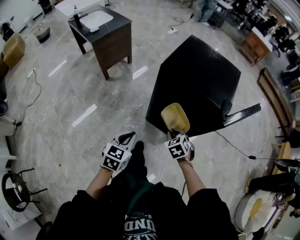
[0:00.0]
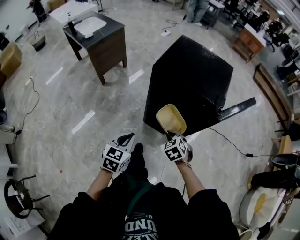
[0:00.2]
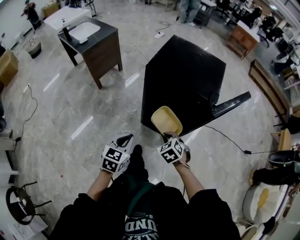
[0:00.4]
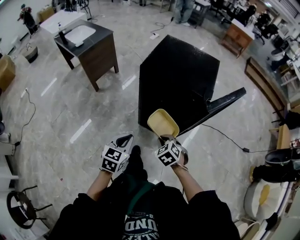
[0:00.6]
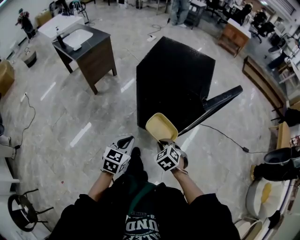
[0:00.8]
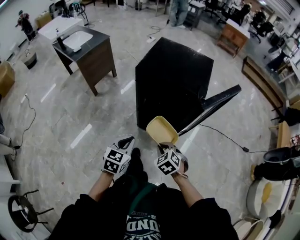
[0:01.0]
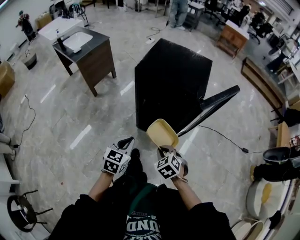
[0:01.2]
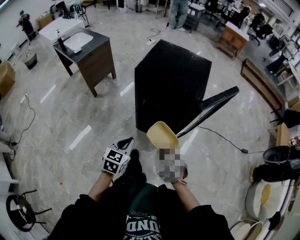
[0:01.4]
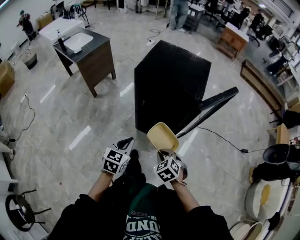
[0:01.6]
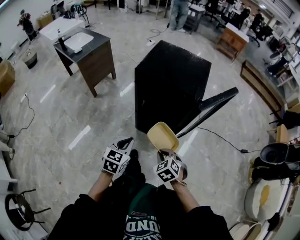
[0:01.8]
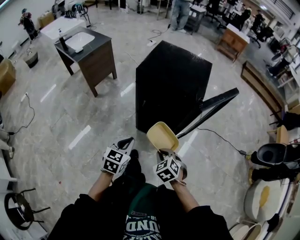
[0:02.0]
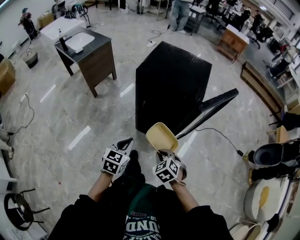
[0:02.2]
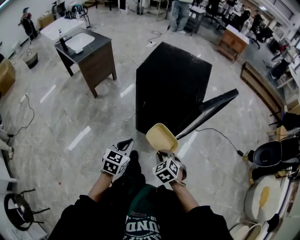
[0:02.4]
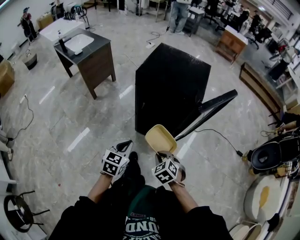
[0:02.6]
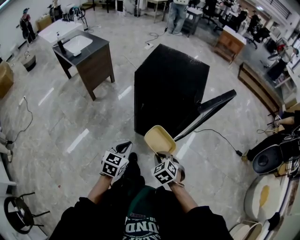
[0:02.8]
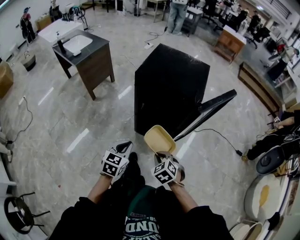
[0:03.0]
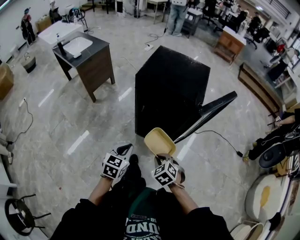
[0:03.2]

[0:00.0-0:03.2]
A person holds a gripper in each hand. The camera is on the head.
0:00.0 to 0:01.6: The right gripper travels backward by roughly 15 cm, while the left gripper travels to the right by approximately 10 cm.
0:01.6 to 0:03.2: The grippers make only small movements.

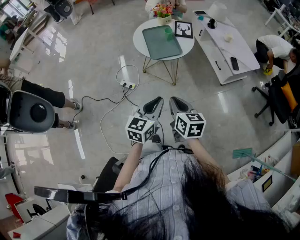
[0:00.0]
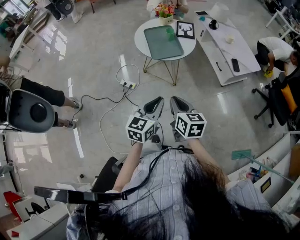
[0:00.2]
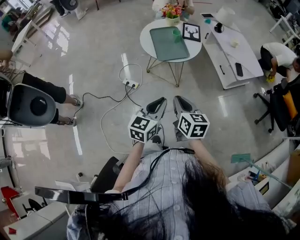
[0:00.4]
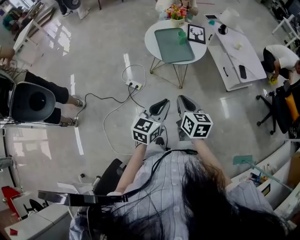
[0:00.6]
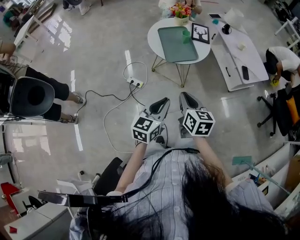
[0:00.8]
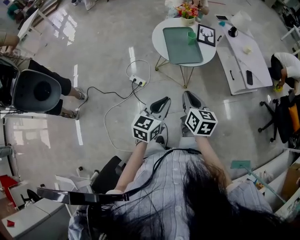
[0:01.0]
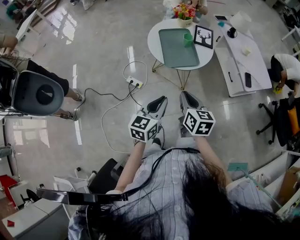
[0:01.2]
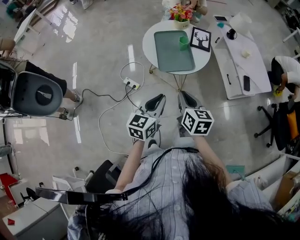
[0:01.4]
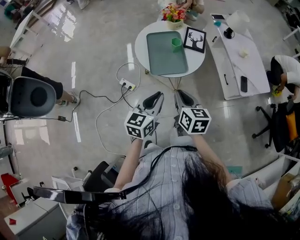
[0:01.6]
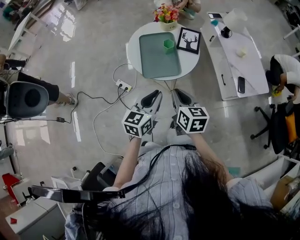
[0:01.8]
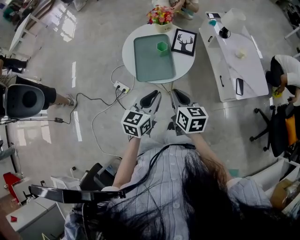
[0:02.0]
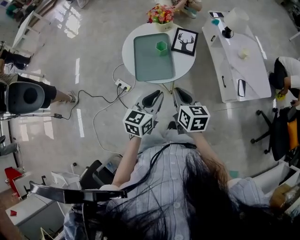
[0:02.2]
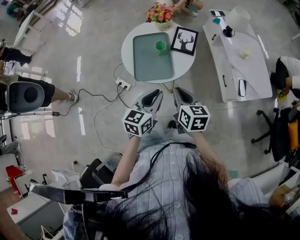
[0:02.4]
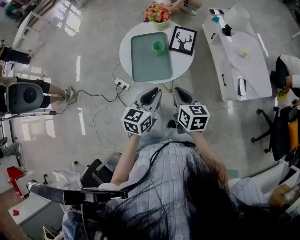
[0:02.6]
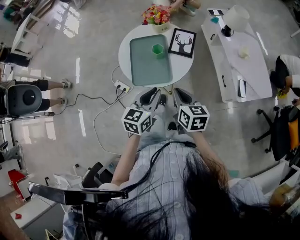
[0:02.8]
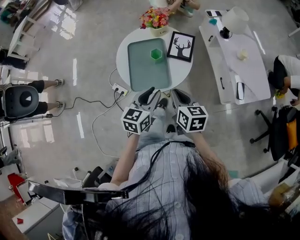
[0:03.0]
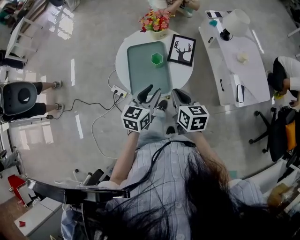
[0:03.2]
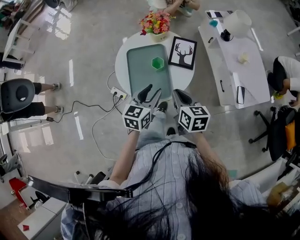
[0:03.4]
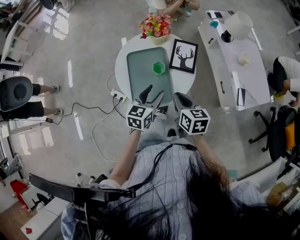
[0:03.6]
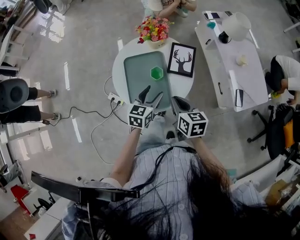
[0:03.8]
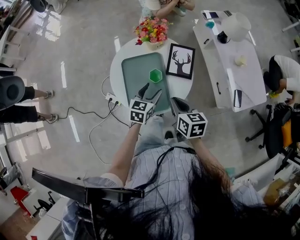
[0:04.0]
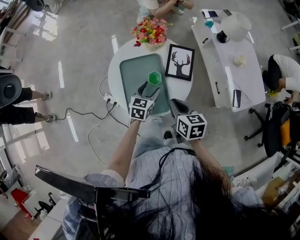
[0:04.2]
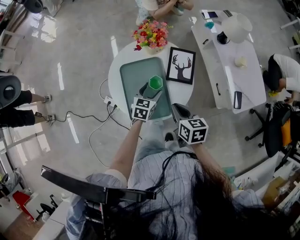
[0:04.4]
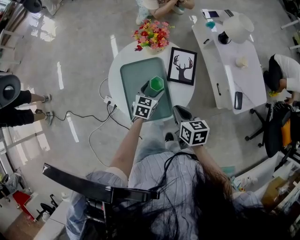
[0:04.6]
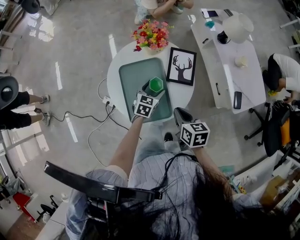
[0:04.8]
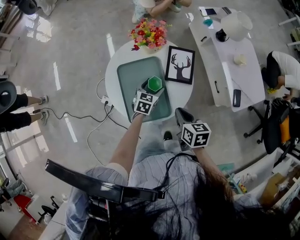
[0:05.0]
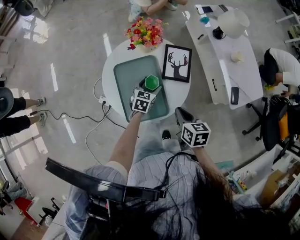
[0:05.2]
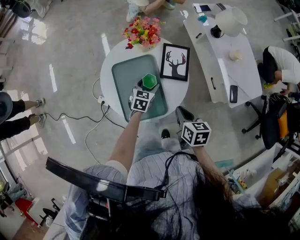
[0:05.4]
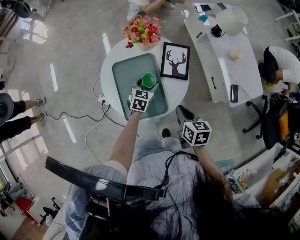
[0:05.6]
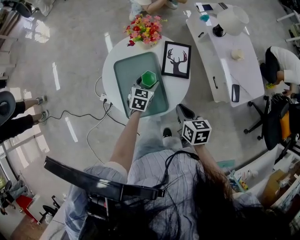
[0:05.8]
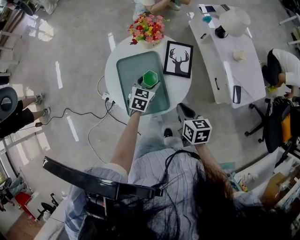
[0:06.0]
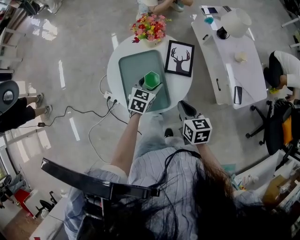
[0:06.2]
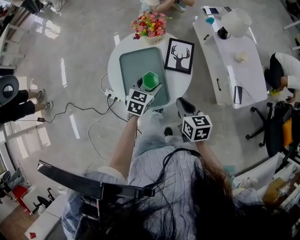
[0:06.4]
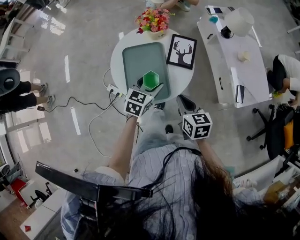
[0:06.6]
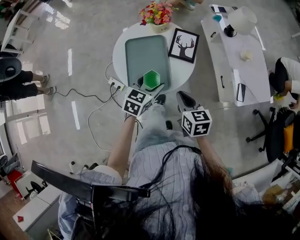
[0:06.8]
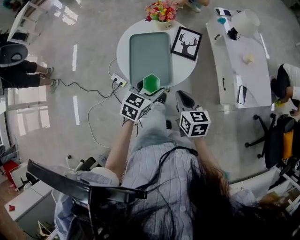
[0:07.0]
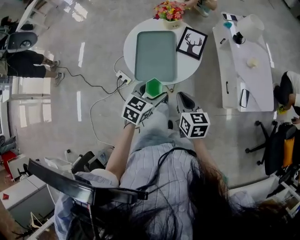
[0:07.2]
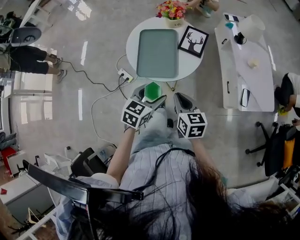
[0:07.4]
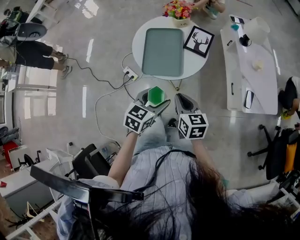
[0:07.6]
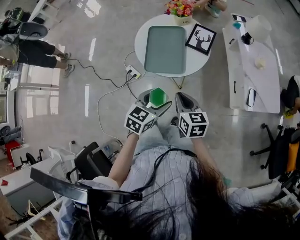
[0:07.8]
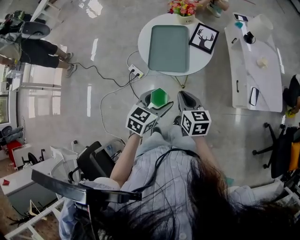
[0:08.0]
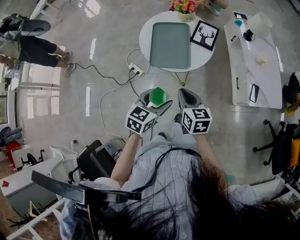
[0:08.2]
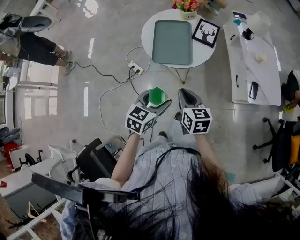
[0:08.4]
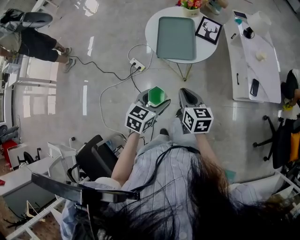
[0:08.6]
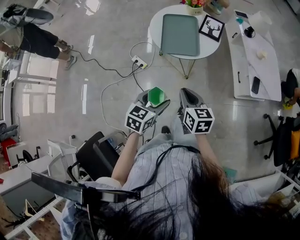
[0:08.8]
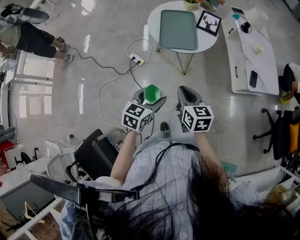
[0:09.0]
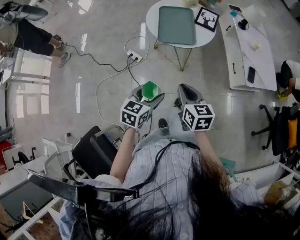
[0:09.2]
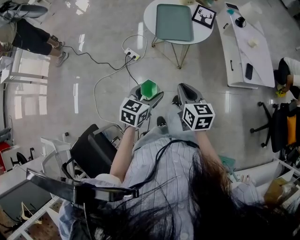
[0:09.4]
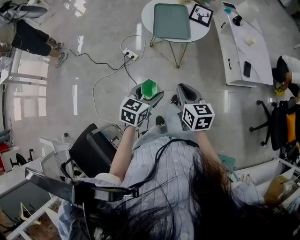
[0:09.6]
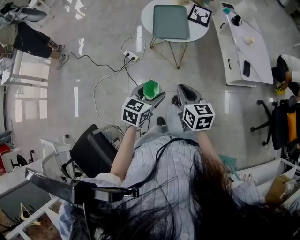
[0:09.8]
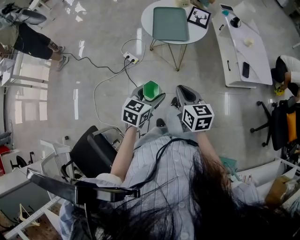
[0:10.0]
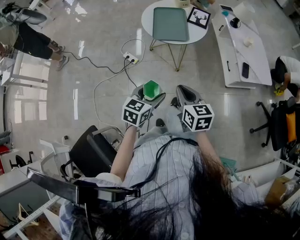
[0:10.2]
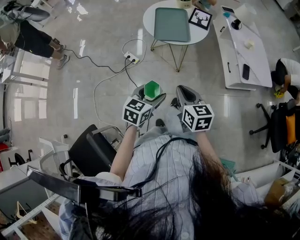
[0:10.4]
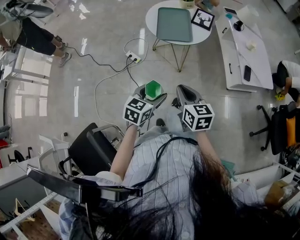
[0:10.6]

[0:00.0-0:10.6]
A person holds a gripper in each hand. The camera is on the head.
0:00.0 to 0:01.6: The grippers both shift forward by approximately 20 cm.
0:01.6 to 0:03.0: Both grippers move forward and to the right, approximately 15 cm.
0:03.0 to 0:04.6: The right gripper travels forward and downward by about 10 cm. The left gripper goes some 25 cm forward and downward, and opens.
0:04.6 to 0:06.0: The grippers make only small movements.
0:06.0 to 0:07.6: The right gripper moves backward, some 15 cm, and turns by some 20 degrees. The left gripper shifts approximately 35 cm backward and upward.
0:07.6 to 0:09.0: The grippers both shift backward and to the left by some 20 cm.
0:09.0 to 0:10.6: Both grippers move backward, approximately 5 cm.

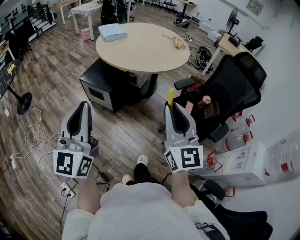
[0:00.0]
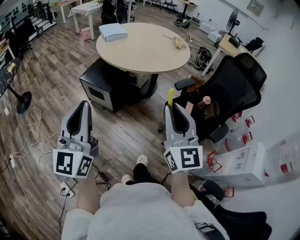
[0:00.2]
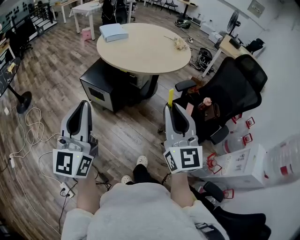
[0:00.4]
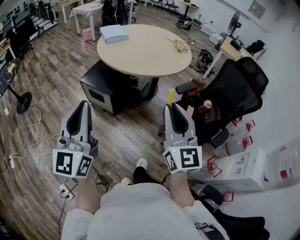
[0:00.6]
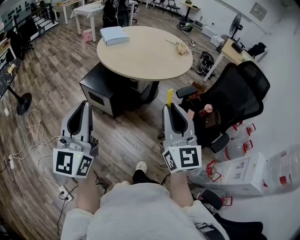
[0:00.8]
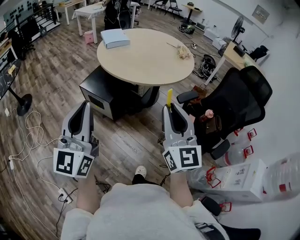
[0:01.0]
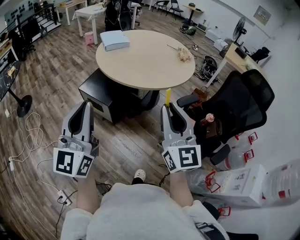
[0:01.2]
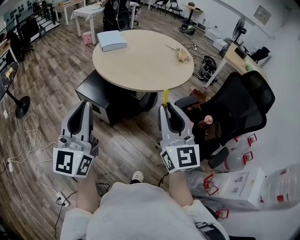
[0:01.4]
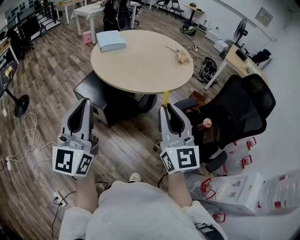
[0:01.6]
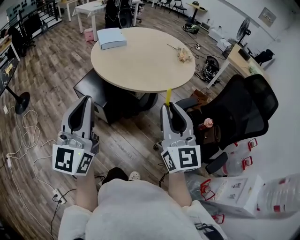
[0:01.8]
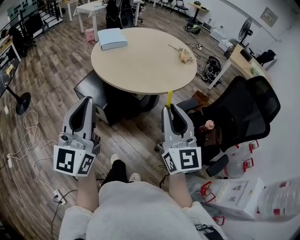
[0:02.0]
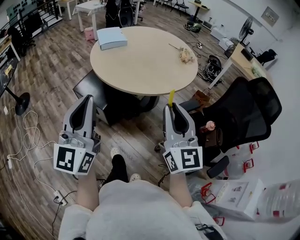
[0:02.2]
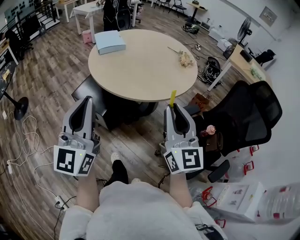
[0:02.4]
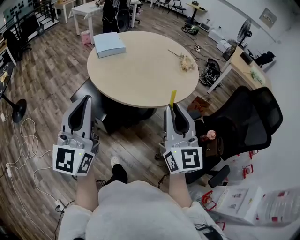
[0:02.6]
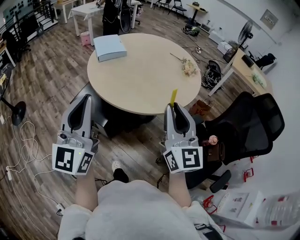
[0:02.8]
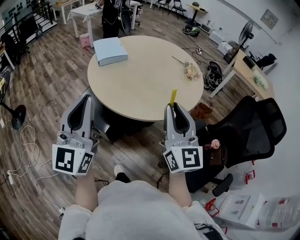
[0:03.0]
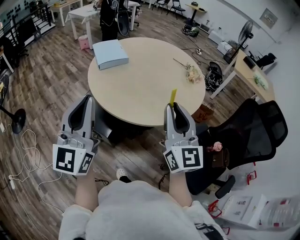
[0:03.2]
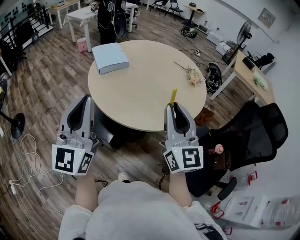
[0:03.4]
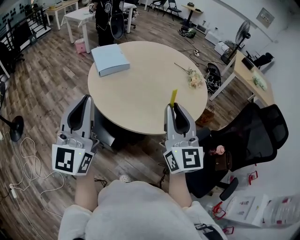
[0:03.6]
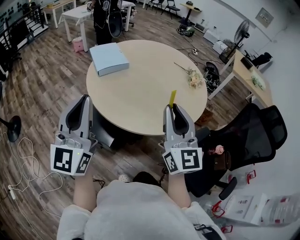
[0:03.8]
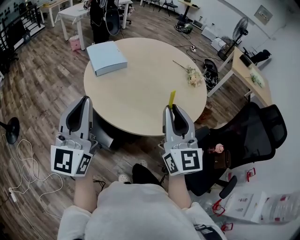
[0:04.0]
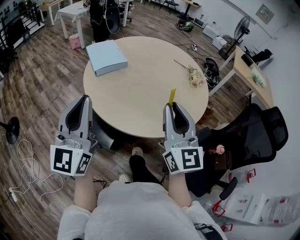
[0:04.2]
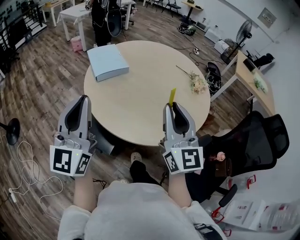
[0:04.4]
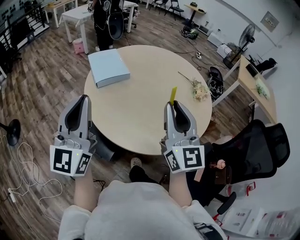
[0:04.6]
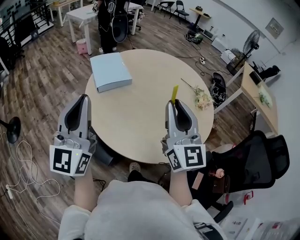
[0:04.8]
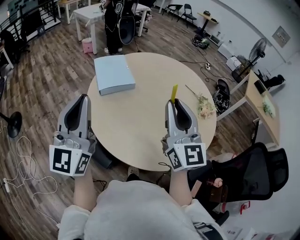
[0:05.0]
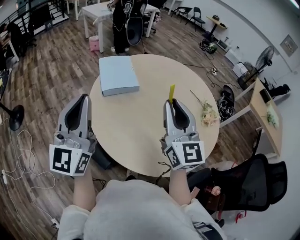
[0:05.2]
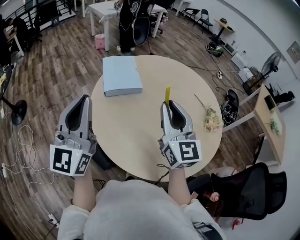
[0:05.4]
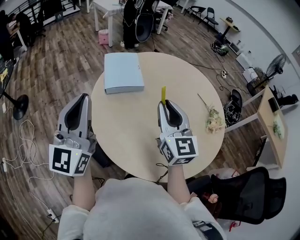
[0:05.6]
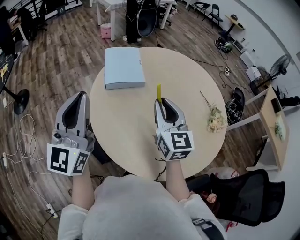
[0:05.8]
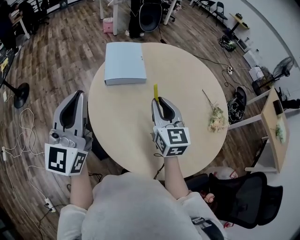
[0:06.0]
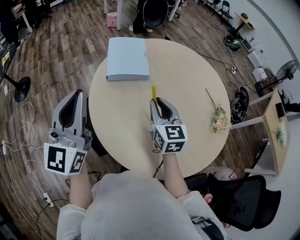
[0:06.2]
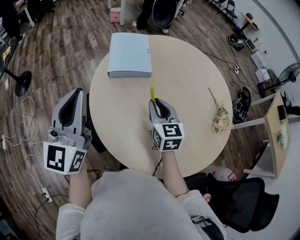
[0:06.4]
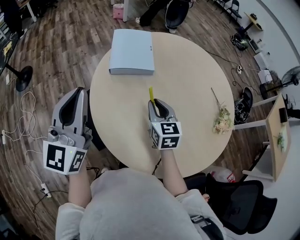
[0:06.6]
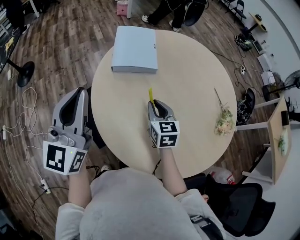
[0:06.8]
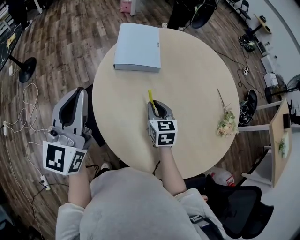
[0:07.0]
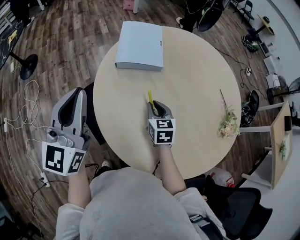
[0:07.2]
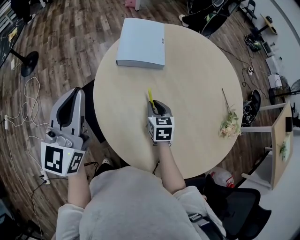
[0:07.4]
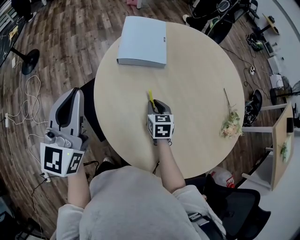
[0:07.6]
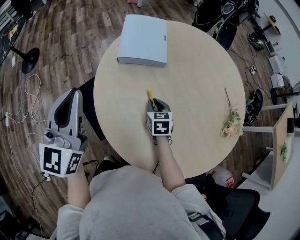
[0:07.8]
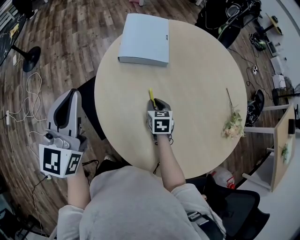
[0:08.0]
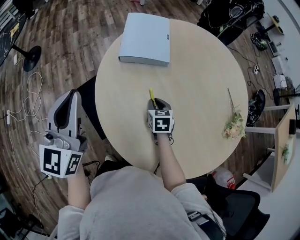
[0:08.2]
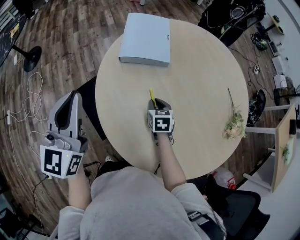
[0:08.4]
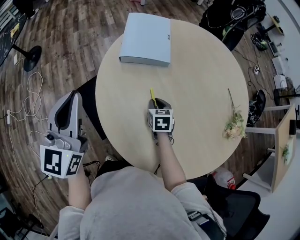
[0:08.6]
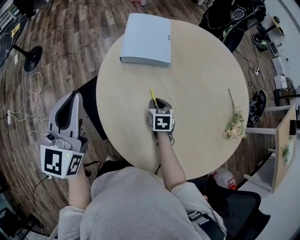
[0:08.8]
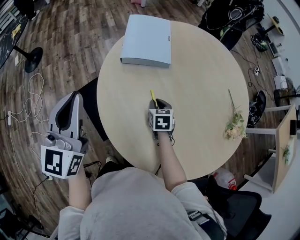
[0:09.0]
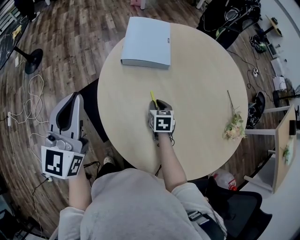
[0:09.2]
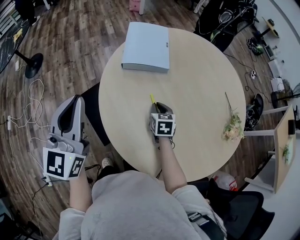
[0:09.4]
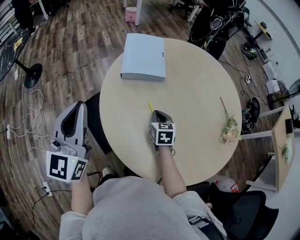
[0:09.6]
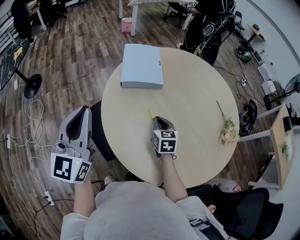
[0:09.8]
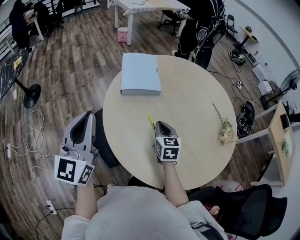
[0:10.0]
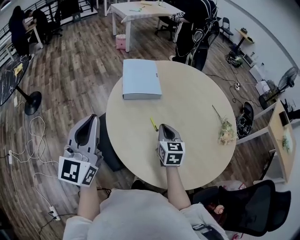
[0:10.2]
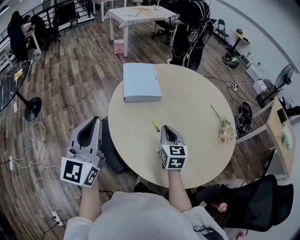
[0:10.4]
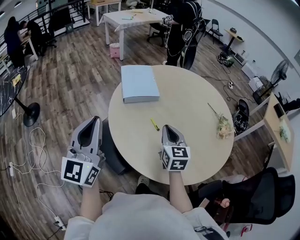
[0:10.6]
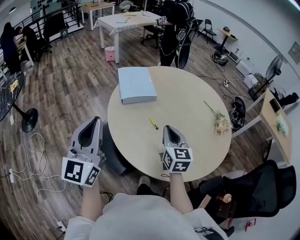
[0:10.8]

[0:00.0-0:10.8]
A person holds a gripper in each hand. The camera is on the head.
0:00.0 to 0:01.6: The two grippers go some 20 cm forward.
0:01.6 to 0:03.0: The two grippers go about 25 cm forward.
0:03.0 to 0:04.6: Both grippers travel together forward, approximately 20 cm.
0:04.6 to 0:06.2: The right gripper goes some 30 cm forward and downward, and rotates some 40 degrees, while the left gripper moves forward, about 10 cm, and rotates approximately 20 degrees.
0:06.2 to 0:07.8: The left gripper travels downward by approximately 5 cm. The right gripper moves downward, about 20 cm, and swivels about 30 degrees.
0:07.8 to 0:09.2: The grippers move only a little.
0:09.2 to 0:10.8: The left gripper shifts approximately 10 cm backward and upward, and changes its angle by roughly 20 degrees; the right gripper is displaced upward and backward by roughly 30 cm, and tips its fingers upward by about 30 degrees.
